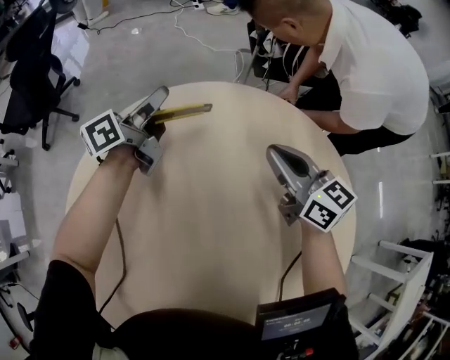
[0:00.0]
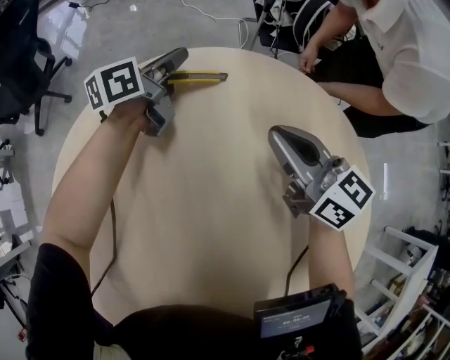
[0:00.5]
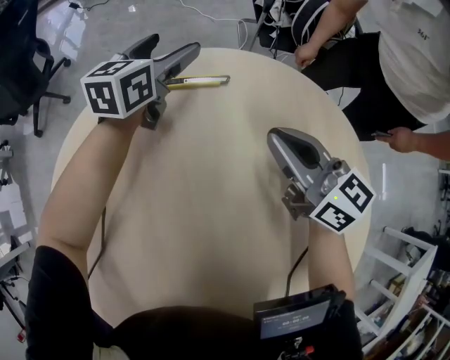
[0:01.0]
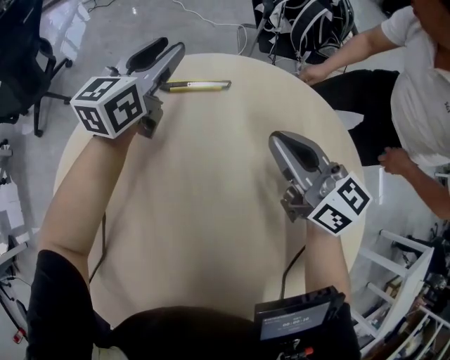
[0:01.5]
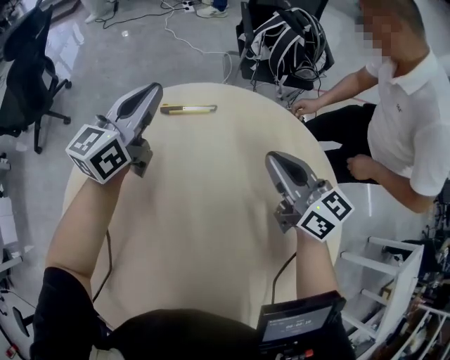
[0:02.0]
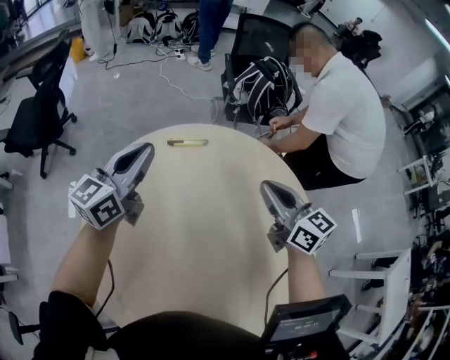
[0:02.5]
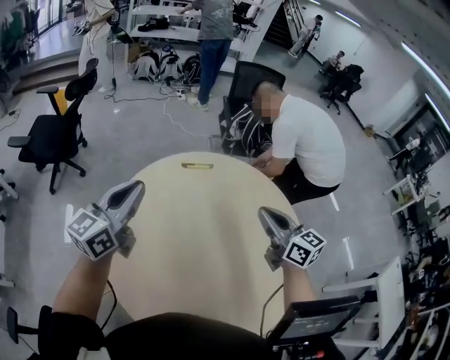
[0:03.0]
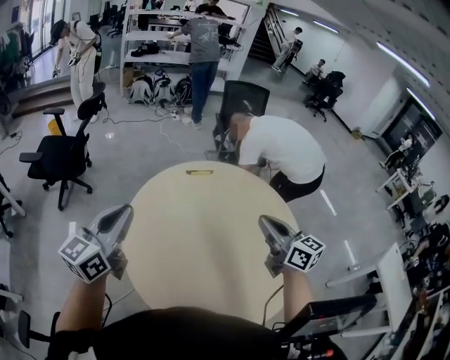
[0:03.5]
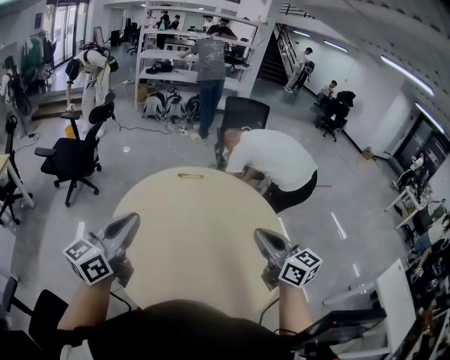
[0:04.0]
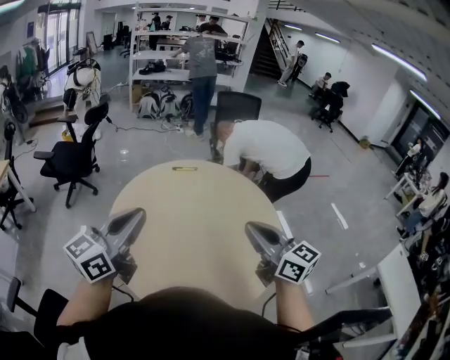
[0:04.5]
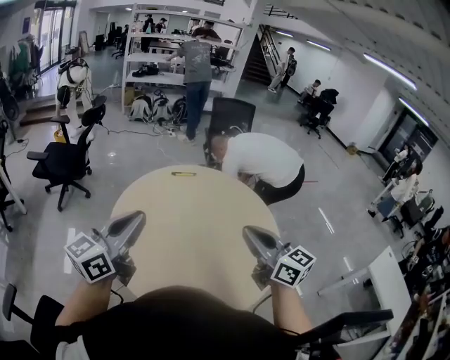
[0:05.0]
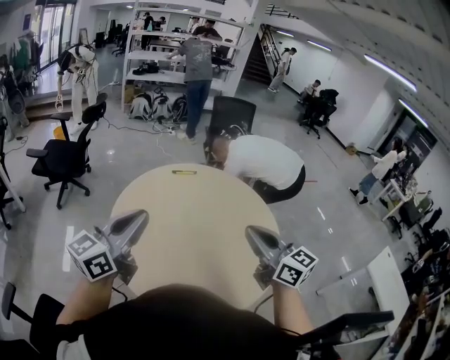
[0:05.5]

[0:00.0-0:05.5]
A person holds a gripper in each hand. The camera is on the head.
0.0 to 2.0 s: The left gripper moves upward, roughly 10 cm, changes its angle by some 40 degrees, and opens, then closes once more. Meanwhile the right gripper moves roughly 5 cm.
2.0 to 3.5 s: The left gripper heads backward, upward and to the left, covering roughly 60 cm. Meanwhile the right gripper heads backward and upward, covering some 40 cm.
3.5 to 5.5 s: The right gripper travels backward by about 20 cm. The left gripper travels backward and to the right by roughly 20 cm.

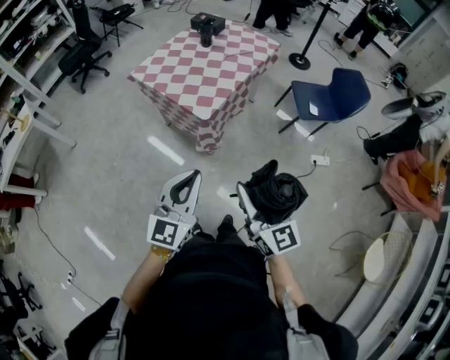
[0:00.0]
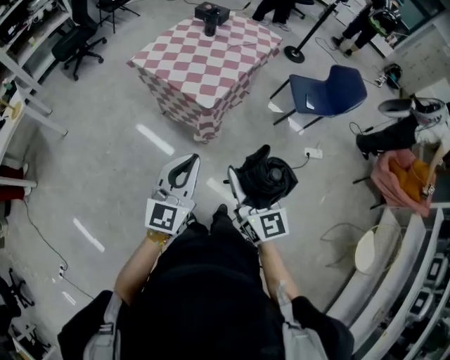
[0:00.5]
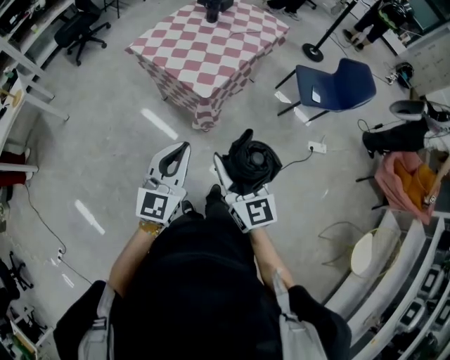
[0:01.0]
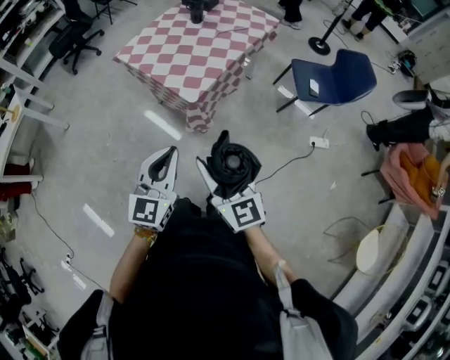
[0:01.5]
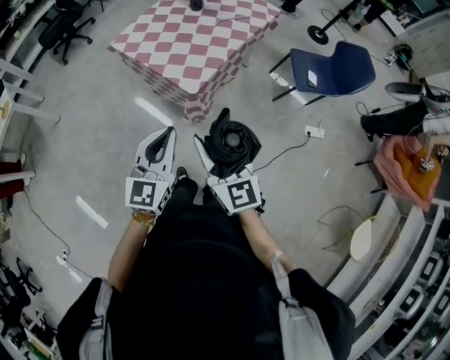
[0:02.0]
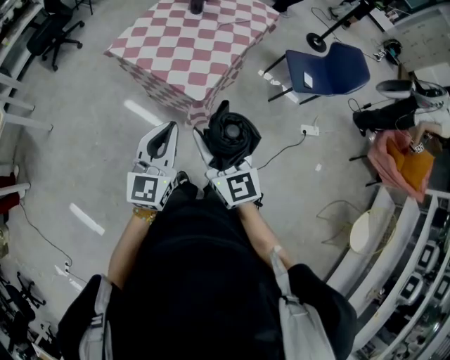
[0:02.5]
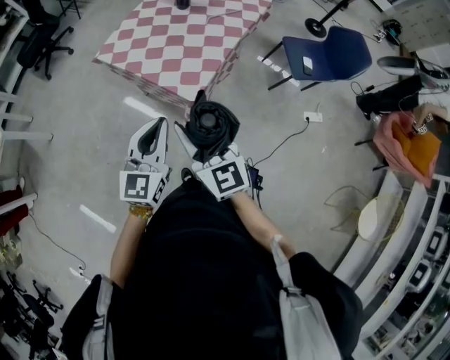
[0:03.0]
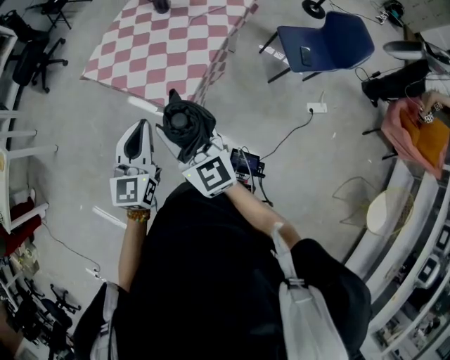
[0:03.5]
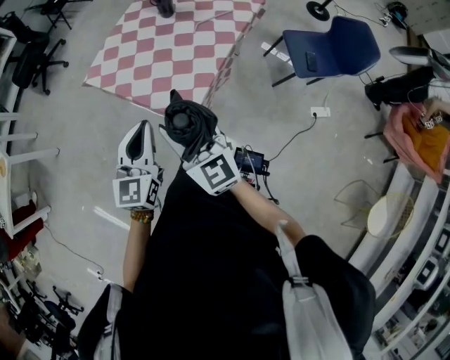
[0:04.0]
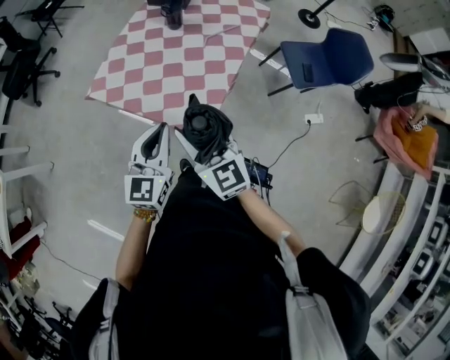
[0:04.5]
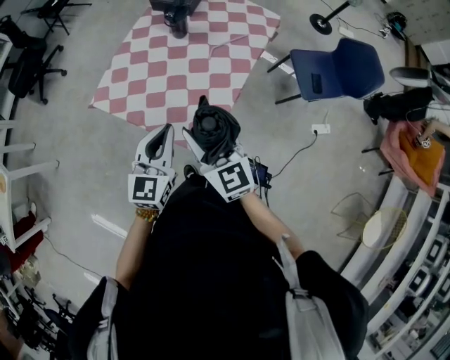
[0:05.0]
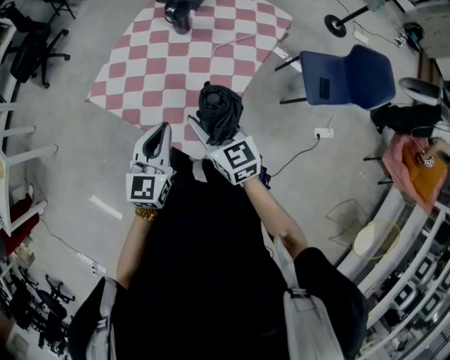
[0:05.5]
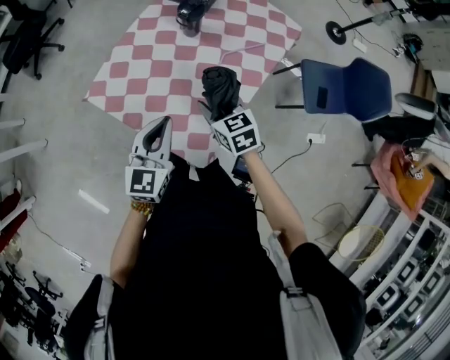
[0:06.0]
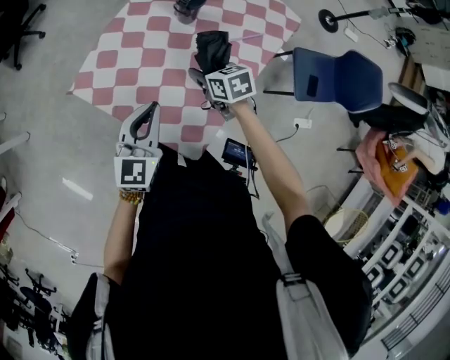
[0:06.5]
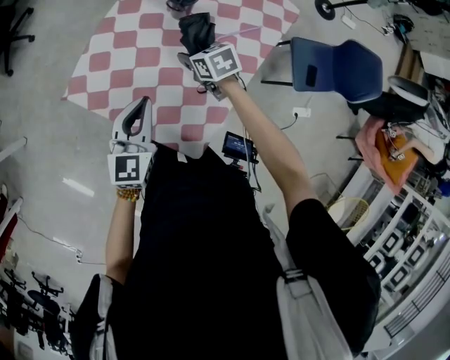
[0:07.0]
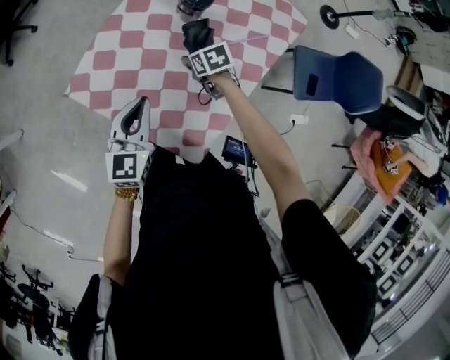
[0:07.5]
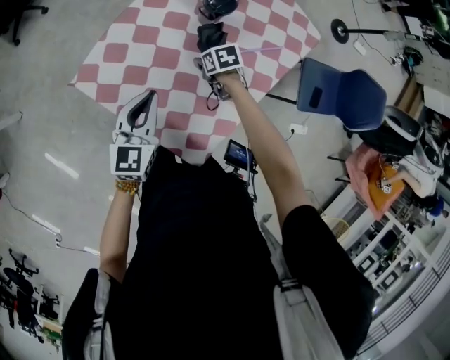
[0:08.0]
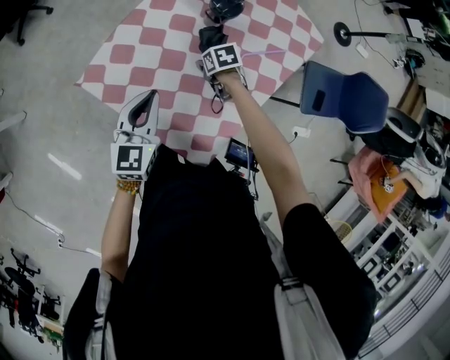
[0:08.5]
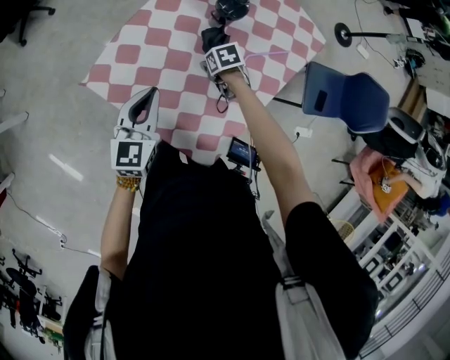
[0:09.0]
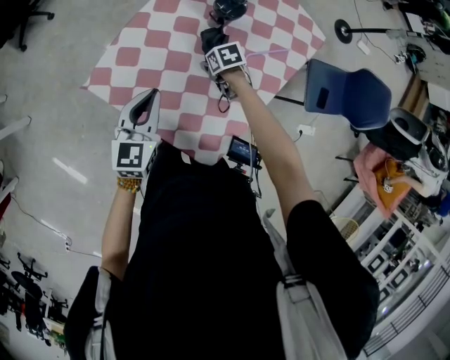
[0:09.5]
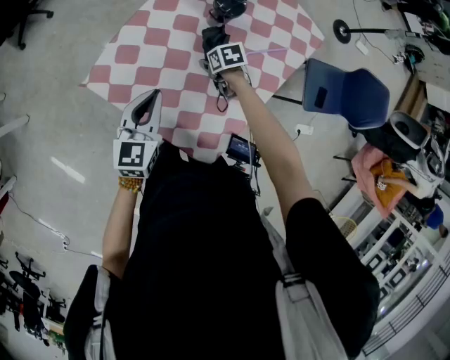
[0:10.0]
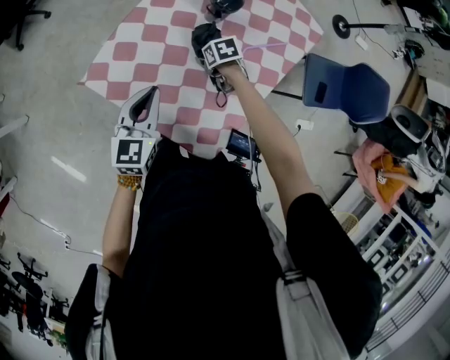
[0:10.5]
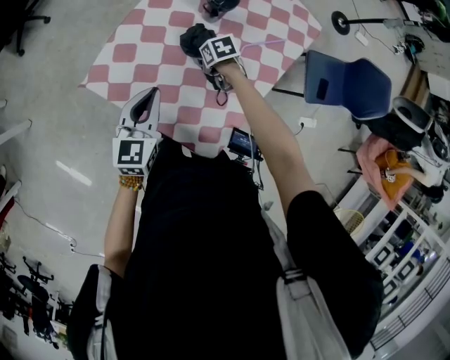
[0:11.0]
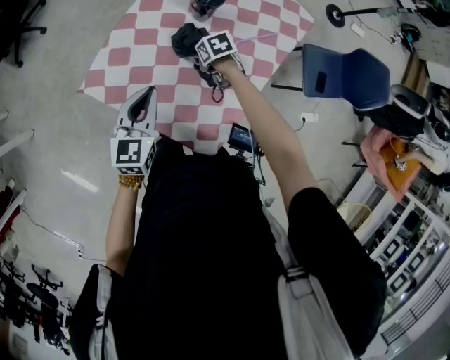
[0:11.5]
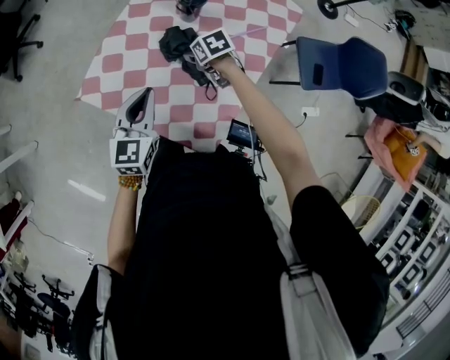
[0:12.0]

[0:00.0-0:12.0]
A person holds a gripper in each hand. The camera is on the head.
0.0 to 2.0 s: The right gripper shifts about 15 cm forward and to the left. The left gripper shifts about 15 cm forward.
2.0 to 4.0 s: Both grippers travel together forward, about 25 cm.
4.0 to 6.0 s: The left gripper goes about 25 cm forward. The right gripper travels forward and downward by roughly 35 cm, and points its fingers approximately 30 degrees further downward.
6.0 to 8.0 s: The left gripper is displaced forward and to the left by roughly 15 cm. Meanwhile the right gripper is displaced forward and downward by approximately 25 cm, and changes its angle by approximately 30 degrees.
8.0 to 10.0 s: There are only small adjustments of the grippers.
10.0 to 12.0 s: The right gripper heads upward, covering about 5 cm.

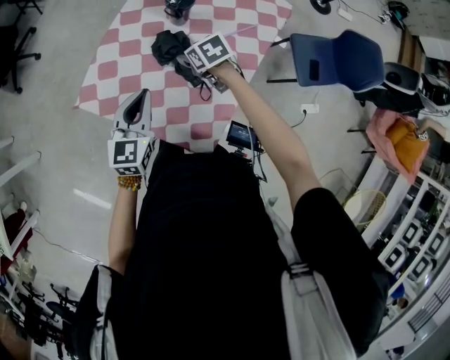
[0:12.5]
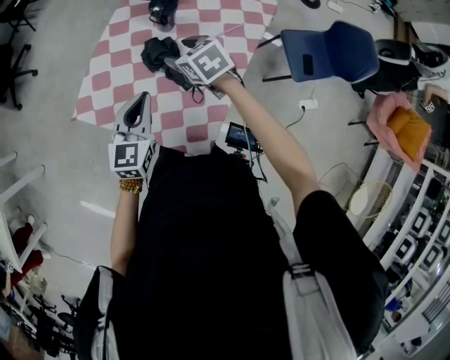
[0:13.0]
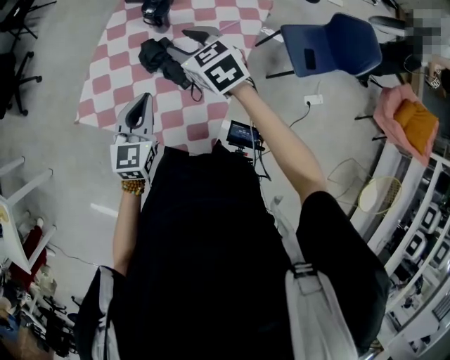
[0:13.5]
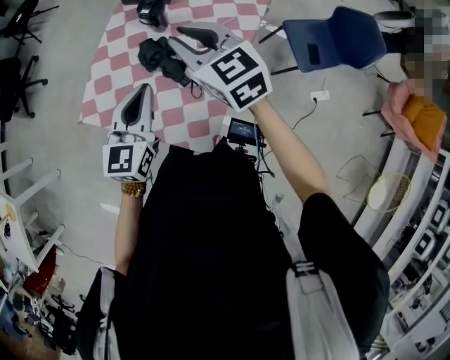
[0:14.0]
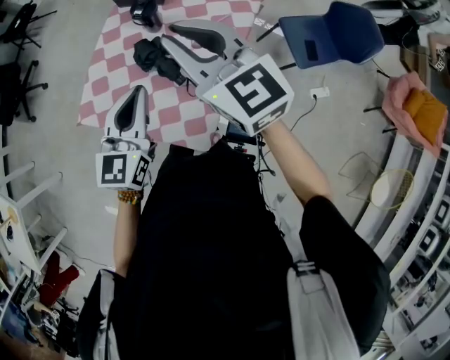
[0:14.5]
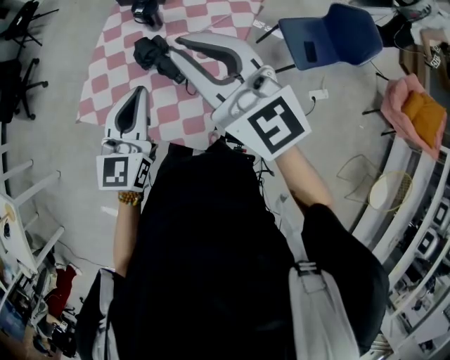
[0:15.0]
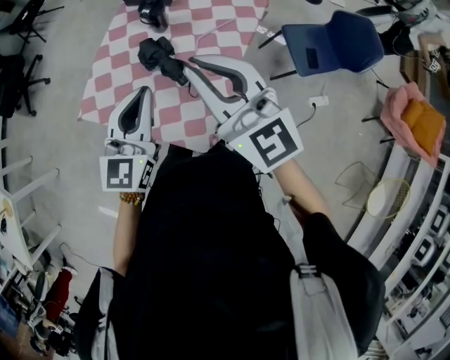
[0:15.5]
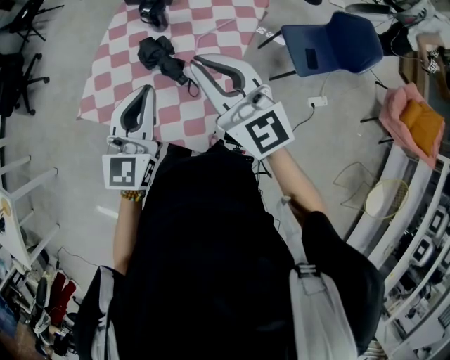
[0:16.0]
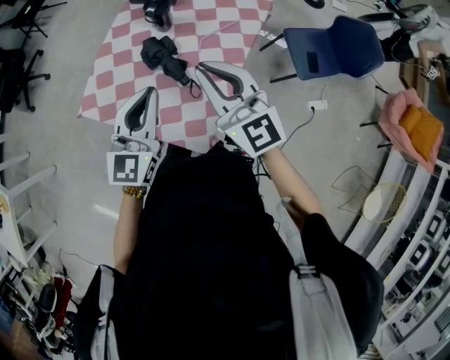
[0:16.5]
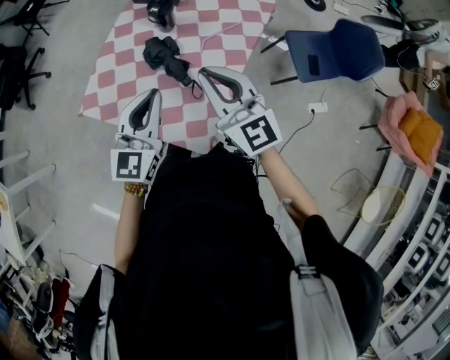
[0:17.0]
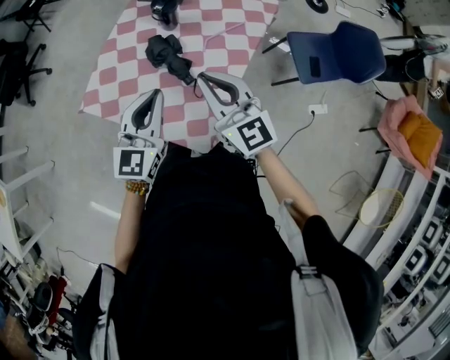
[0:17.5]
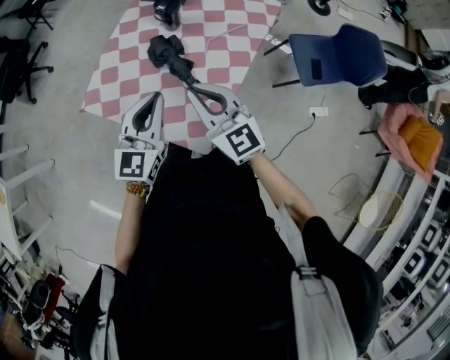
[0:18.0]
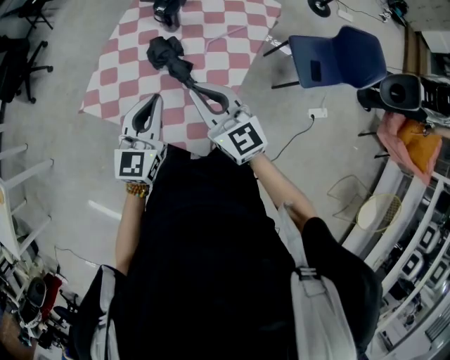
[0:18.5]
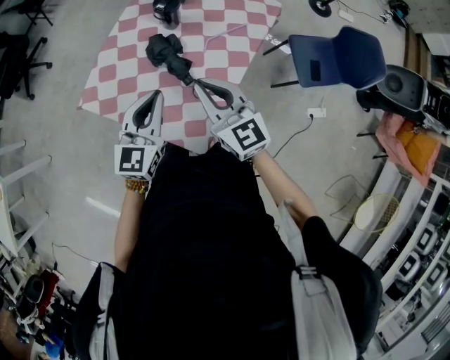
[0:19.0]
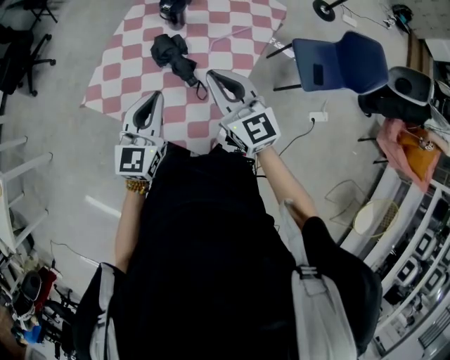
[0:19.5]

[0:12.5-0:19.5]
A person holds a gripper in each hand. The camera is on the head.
12.5 to 14.5 s: The left gripper travels upward and to the right by about 15 cm. Meanwhile the right gripper heads upward, covering about 35 cm, angles its fingers upward, by roughly 50 degrees, and closes.
14.5 to 16.0 s: The right gripper moves backward, approximately 5 cm.
16.0 to 17.5 s: The right gripper travels downward by about 10 cm, while the left gripper moves downward, roughly 5 cm.
17.5 to 19.5 s: The grippers make only small movements.

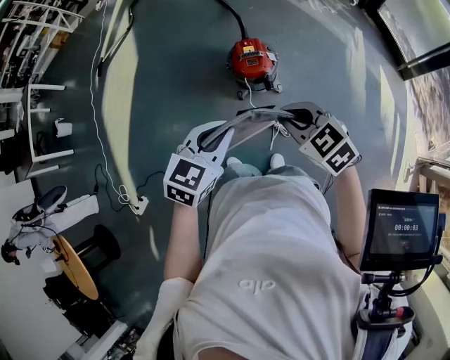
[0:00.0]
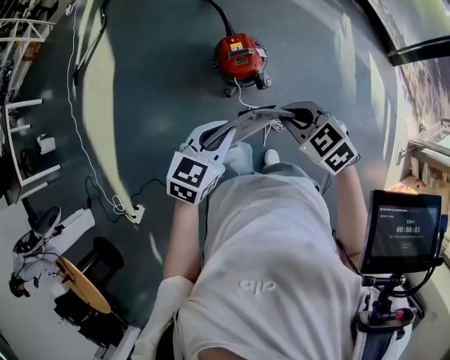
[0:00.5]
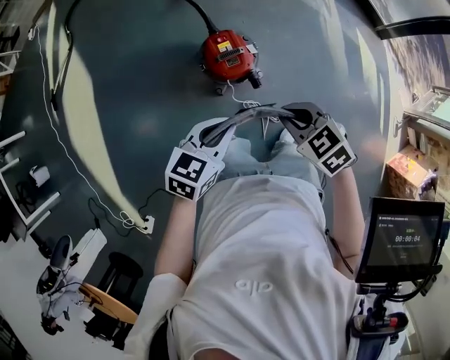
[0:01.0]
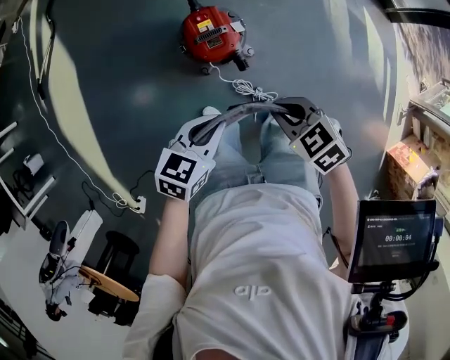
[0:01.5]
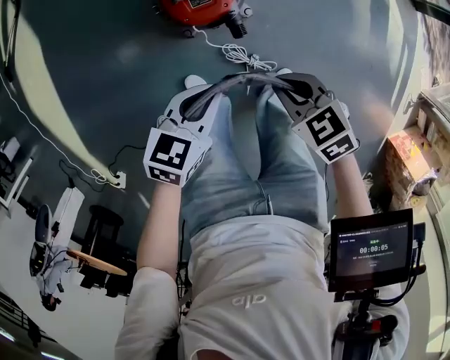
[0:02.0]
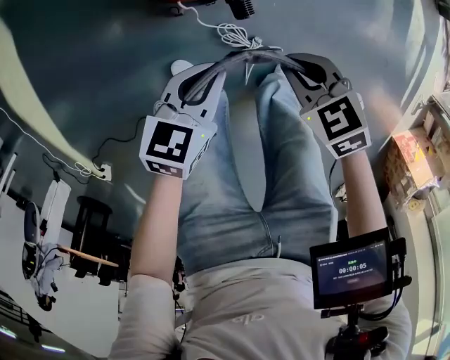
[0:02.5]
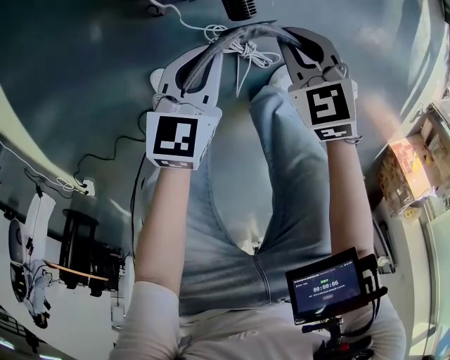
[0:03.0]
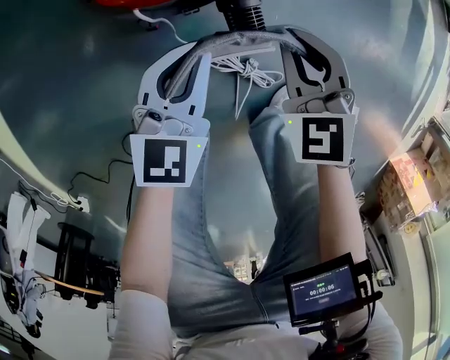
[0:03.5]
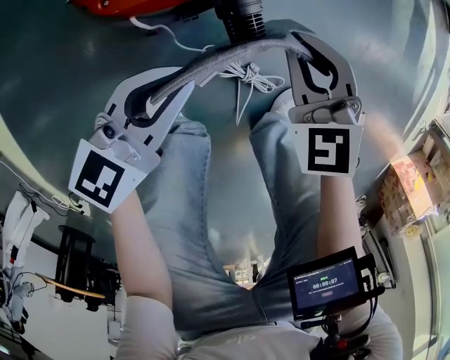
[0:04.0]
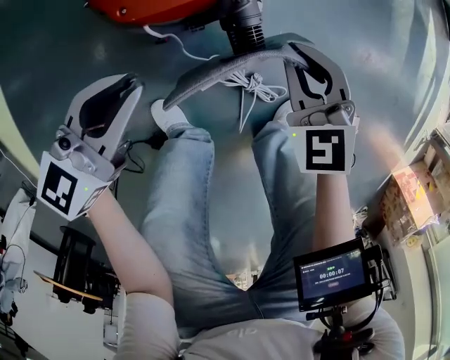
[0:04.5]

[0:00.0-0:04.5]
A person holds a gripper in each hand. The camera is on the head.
0.0 to 2.0 s: The two grippers go some 40 cm downward and forward. The right gripper changes its angle by roughly 30 degrees. Meanwhile the left gripper turns by roughly 30 degrees.
2.0 to 4.5 s: Both grippers travel together downward, approximately 30 cm. The left gripper turns by roughly 20 degrees. The right gripper turns by roughly 30 degrees.
